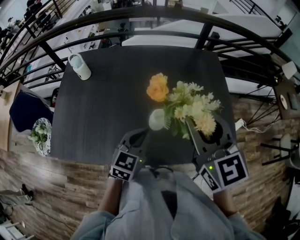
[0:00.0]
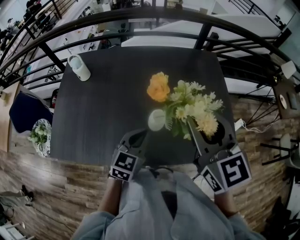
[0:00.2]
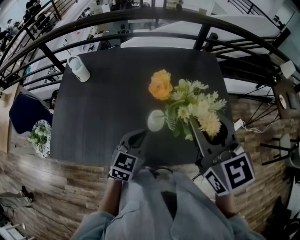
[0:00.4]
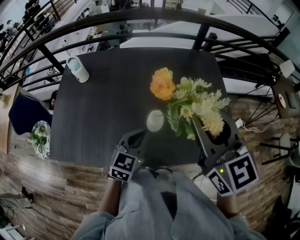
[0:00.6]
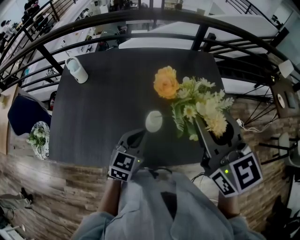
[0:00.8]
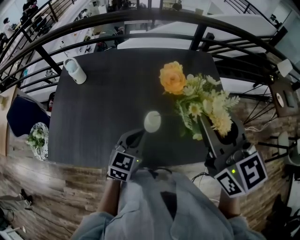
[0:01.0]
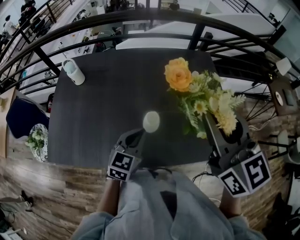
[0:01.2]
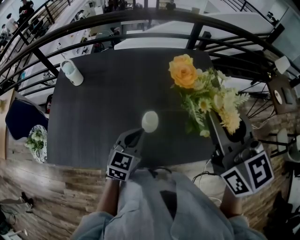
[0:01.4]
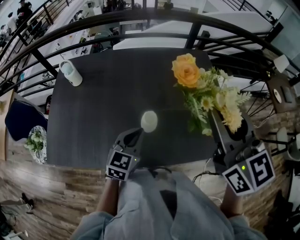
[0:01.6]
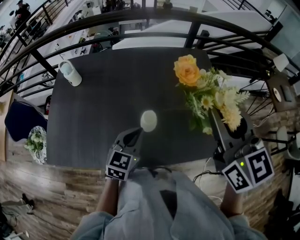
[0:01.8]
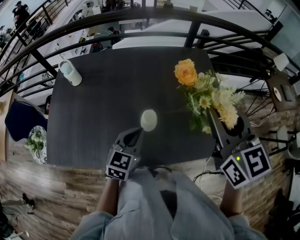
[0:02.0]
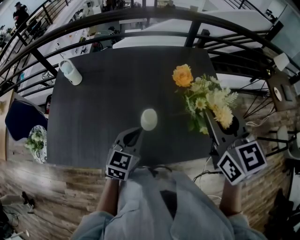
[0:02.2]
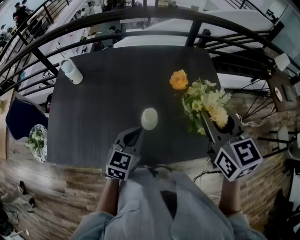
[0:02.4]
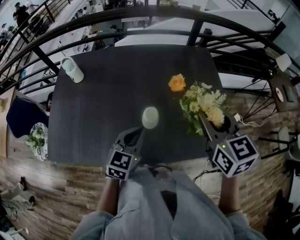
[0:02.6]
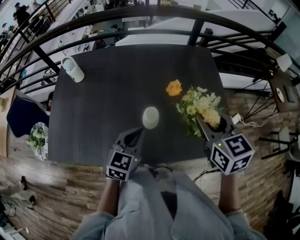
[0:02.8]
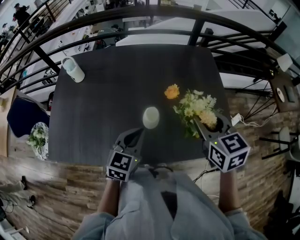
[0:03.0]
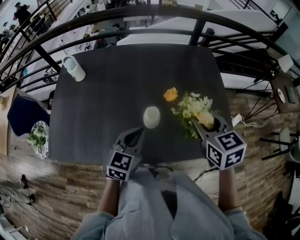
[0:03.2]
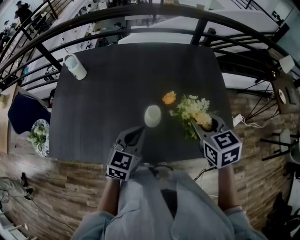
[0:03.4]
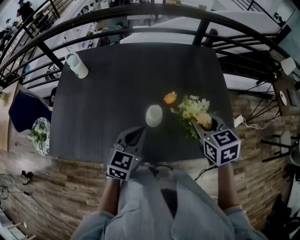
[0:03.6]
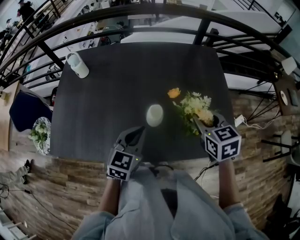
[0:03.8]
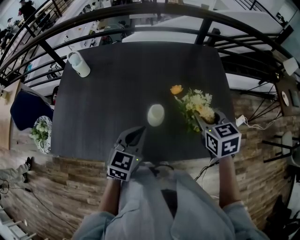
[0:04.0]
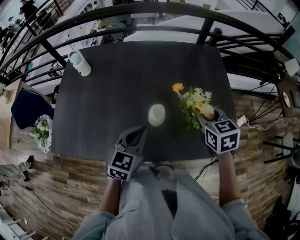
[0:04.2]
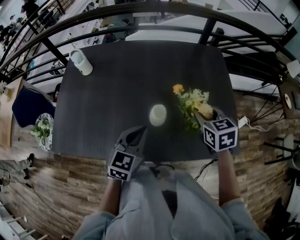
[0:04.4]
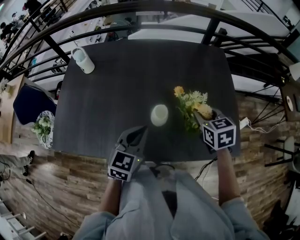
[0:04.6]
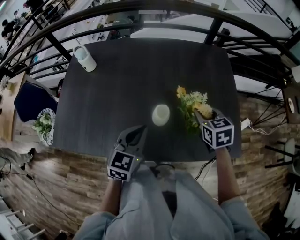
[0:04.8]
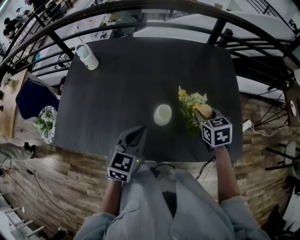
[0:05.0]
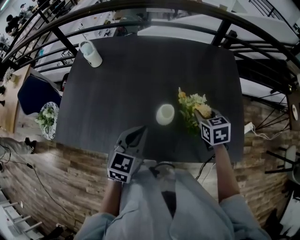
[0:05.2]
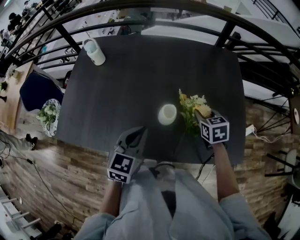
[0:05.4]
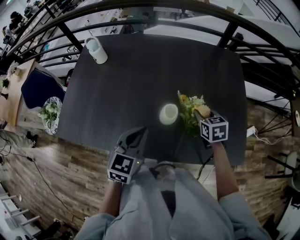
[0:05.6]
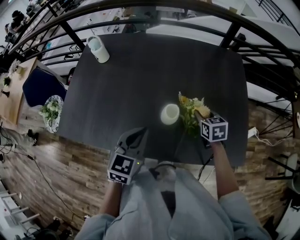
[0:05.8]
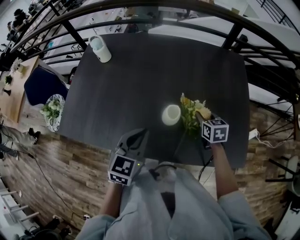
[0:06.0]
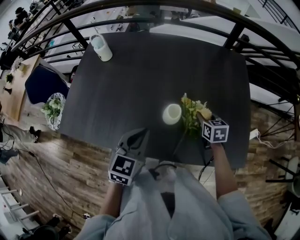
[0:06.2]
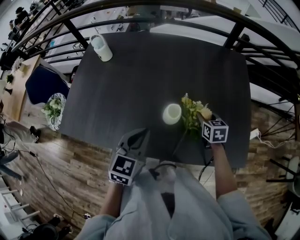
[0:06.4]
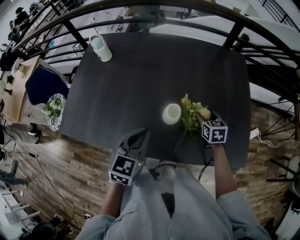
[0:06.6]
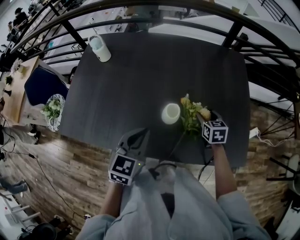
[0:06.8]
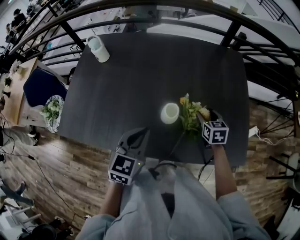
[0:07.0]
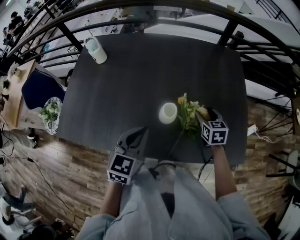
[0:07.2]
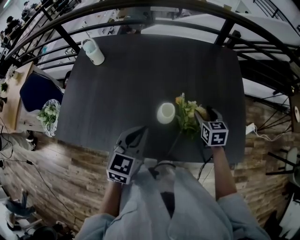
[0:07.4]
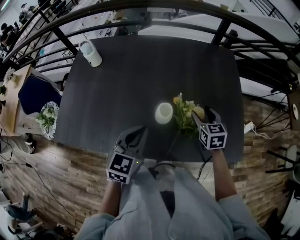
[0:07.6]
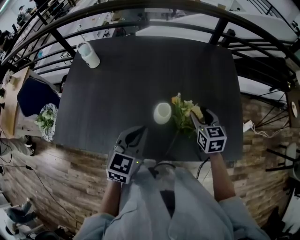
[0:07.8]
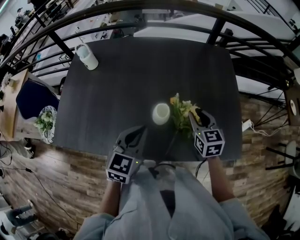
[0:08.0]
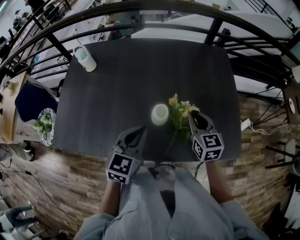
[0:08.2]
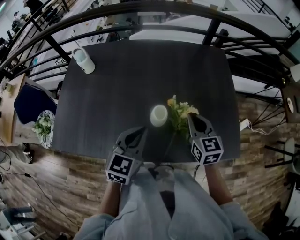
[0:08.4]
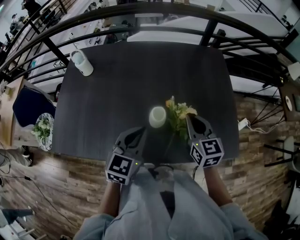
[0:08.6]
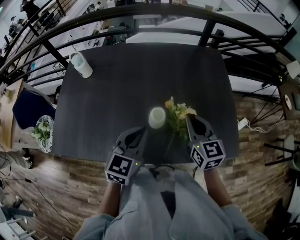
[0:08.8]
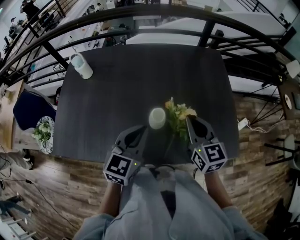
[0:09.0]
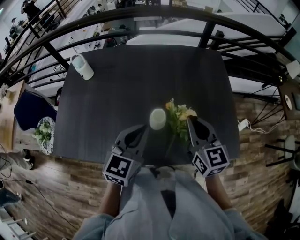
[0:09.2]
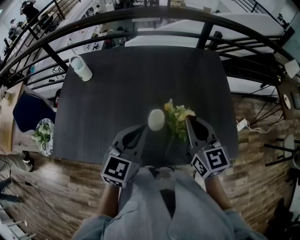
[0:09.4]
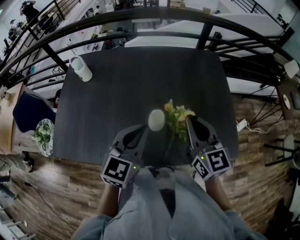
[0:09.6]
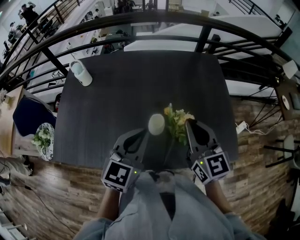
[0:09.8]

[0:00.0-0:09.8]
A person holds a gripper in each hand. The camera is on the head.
0:00.0 to 0:01.4: The right gripper goes about 5 cm upward.
0:01.4 to 0:02.8: The right gripper shifts about 15 cm downward, and turns by roughly 20 degrees.
0:02.8 to 0:04.2: The right gripper heads downward, covering about 10 cm.
0:04.2 to 0:05.6: The right gripper is displaced downward by approximately 10 cm.
0:05.6 to 0:07.0: The right gripper opens.
0:07.0 to 0:08.4: The right gripper is displaced upward and backward by about 15 cm, and closes up.
0:08.4 to 0:09.8: The right gripper travels upward by approximately 10 cm; the left gripper goes approximately 5 cm upward.

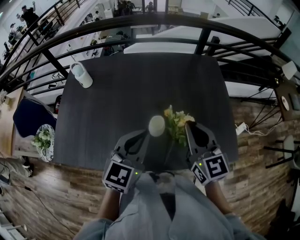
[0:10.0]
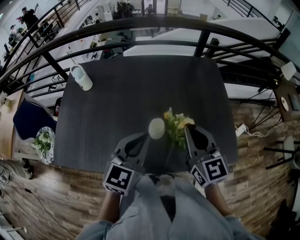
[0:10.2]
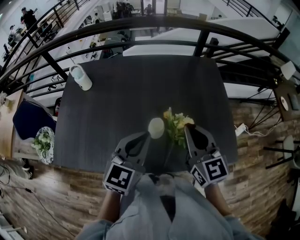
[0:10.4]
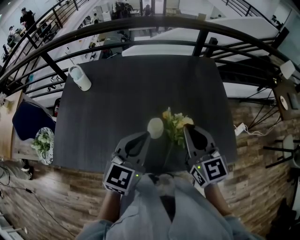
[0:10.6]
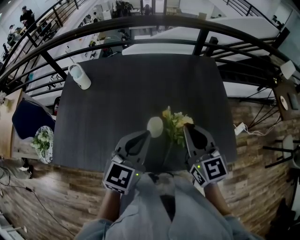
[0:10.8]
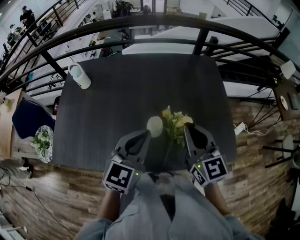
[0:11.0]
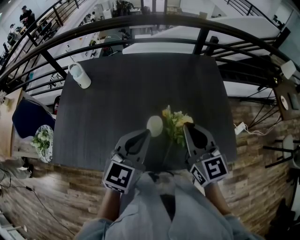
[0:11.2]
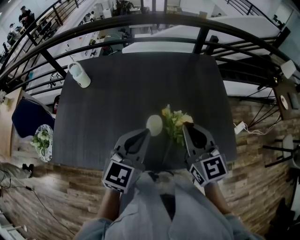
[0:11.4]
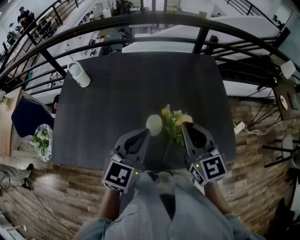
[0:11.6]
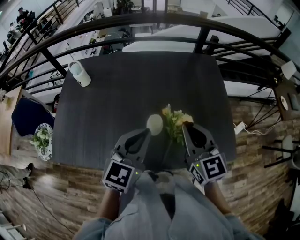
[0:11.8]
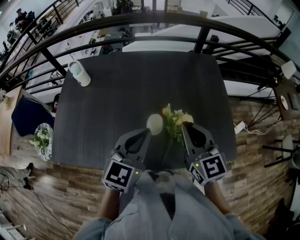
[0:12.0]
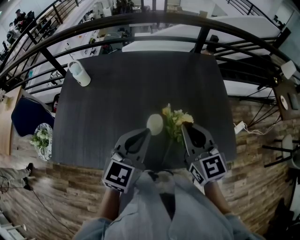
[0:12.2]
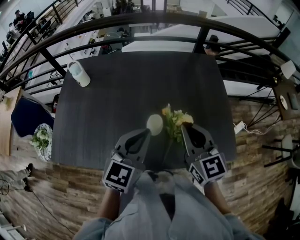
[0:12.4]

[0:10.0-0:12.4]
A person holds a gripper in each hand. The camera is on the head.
0:10.0 to 0:12.4: The two grippers keep their place.

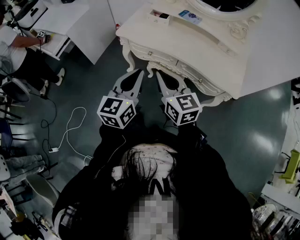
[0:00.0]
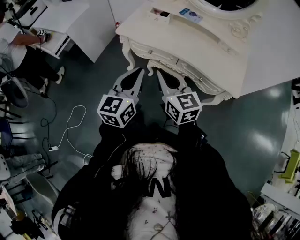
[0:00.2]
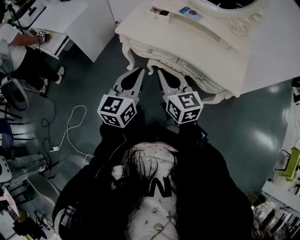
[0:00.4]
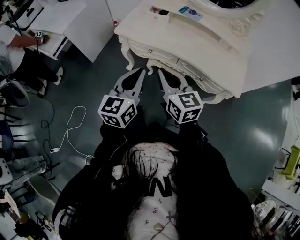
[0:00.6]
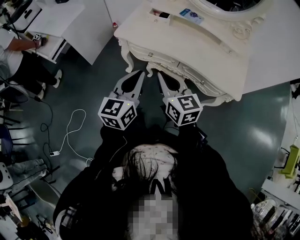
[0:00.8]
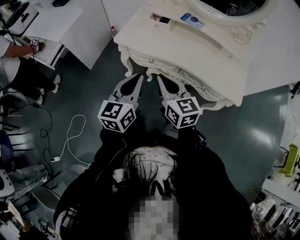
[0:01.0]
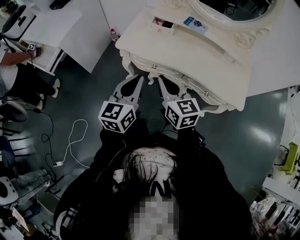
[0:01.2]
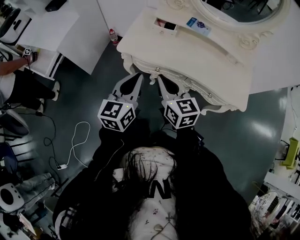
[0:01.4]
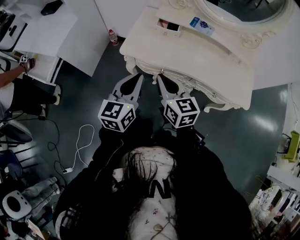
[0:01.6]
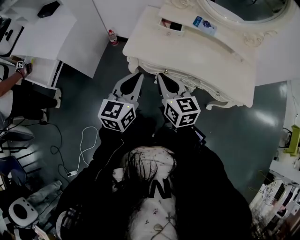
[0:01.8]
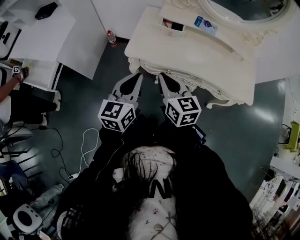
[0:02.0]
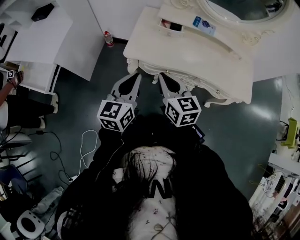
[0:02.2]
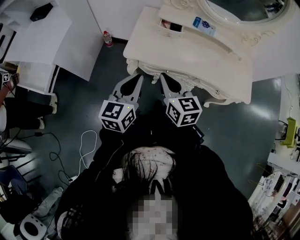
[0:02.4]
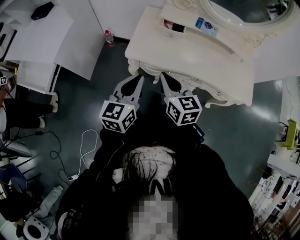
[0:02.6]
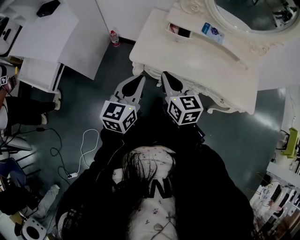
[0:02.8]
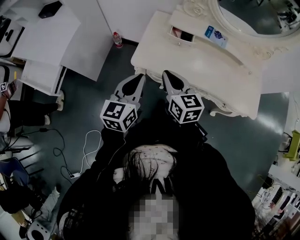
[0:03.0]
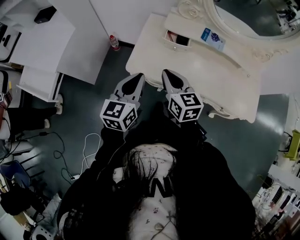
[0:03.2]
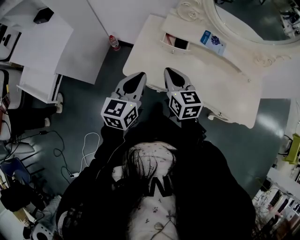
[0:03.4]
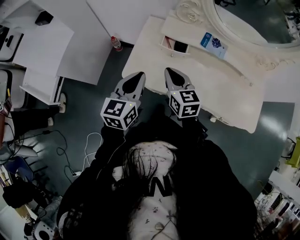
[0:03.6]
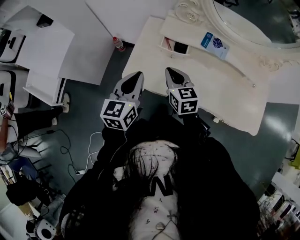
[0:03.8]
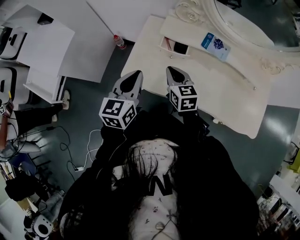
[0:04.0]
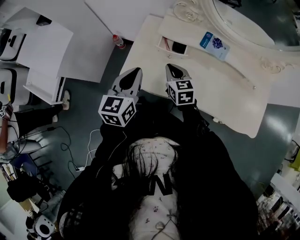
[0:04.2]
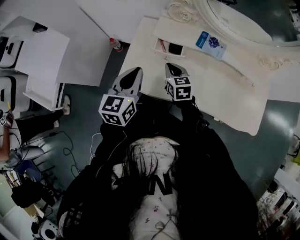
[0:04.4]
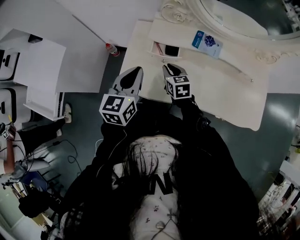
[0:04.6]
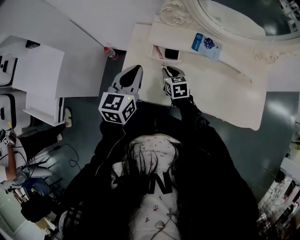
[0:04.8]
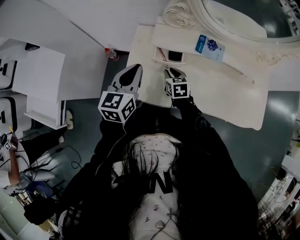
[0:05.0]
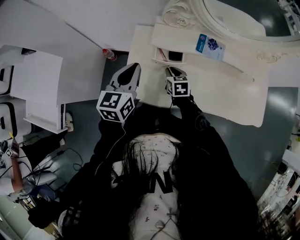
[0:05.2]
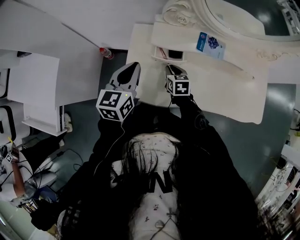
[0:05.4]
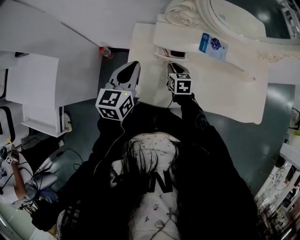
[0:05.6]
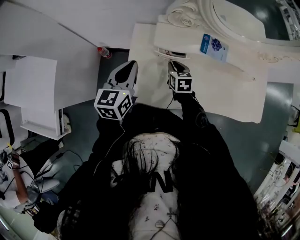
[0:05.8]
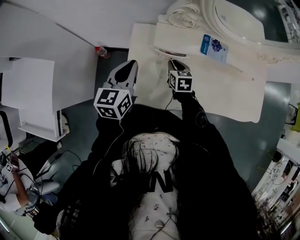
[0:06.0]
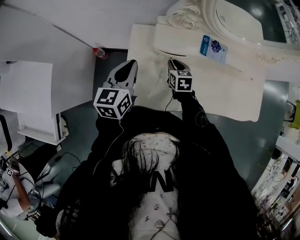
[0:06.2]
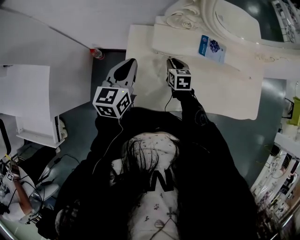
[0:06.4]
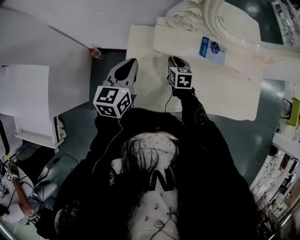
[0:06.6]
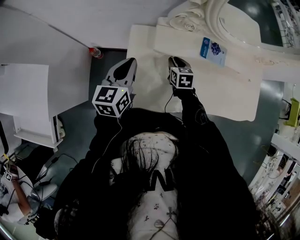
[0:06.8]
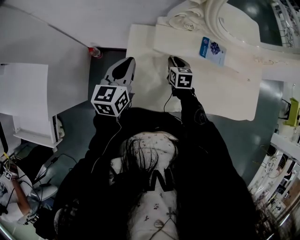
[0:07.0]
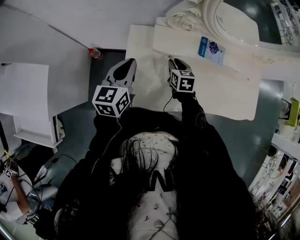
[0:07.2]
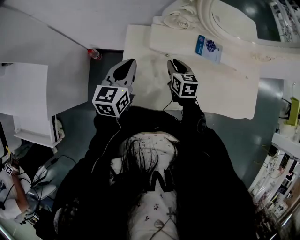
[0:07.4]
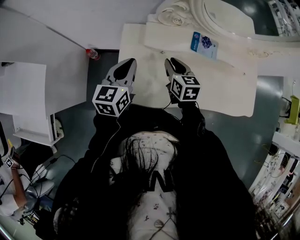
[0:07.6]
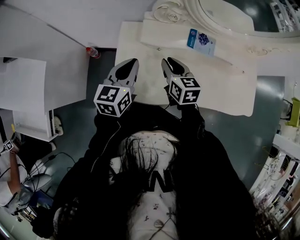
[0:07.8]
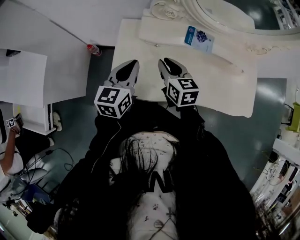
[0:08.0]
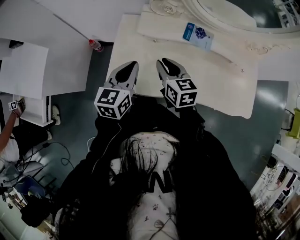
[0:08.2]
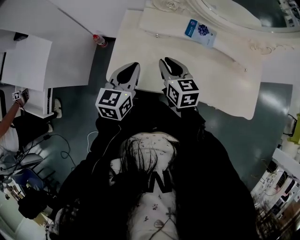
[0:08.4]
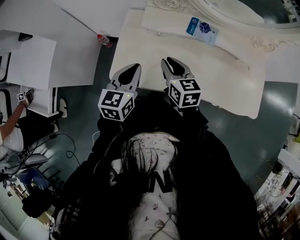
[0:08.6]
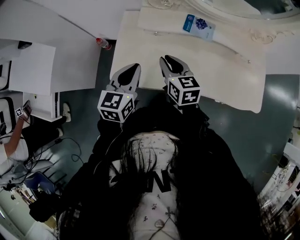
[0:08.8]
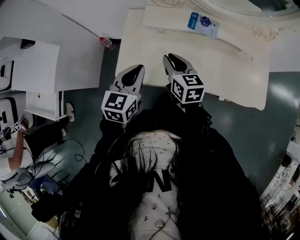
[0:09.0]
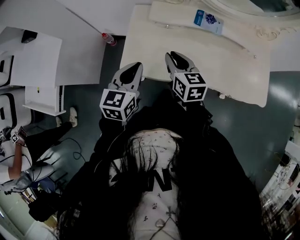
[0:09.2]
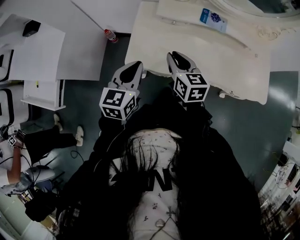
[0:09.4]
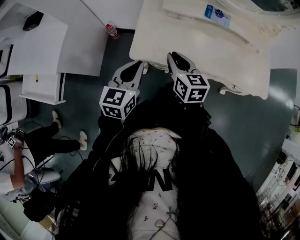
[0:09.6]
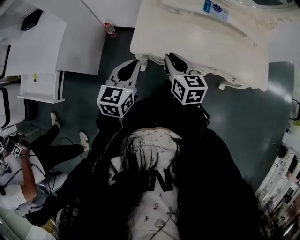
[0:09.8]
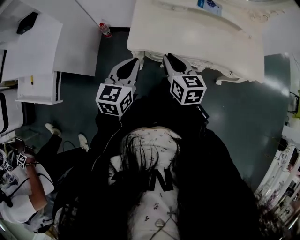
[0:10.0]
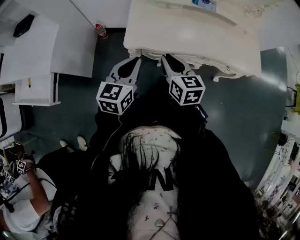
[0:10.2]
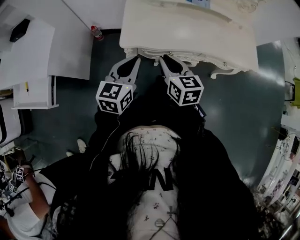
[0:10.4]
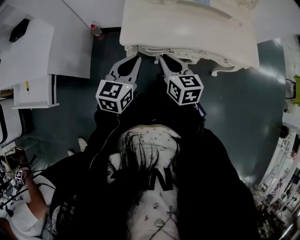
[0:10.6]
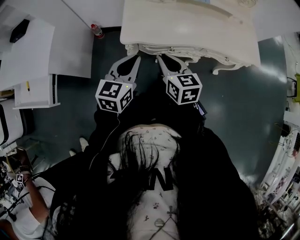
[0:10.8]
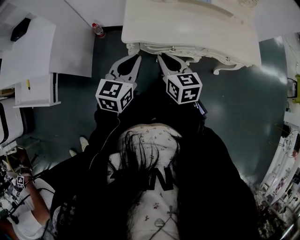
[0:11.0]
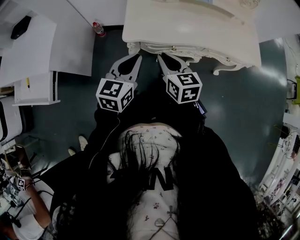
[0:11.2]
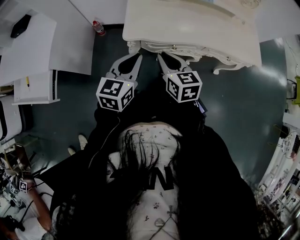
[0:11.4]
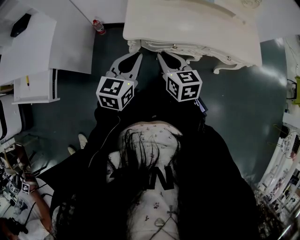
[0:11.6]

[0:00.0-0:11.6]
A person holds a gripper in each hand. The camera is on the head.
0:00.0 to 0:01.4: Both grippers travel together forward and to the left, roughly 20 cm.
0:01.4 to 0:02.8: The grippers both shift to the left and forward by some 15 cm.
0:02.8 to 0:04.4: The left gripper moves forward and to the right, roughly 20 cm. The right gripper travels forward, downward and to the right by about 30 cm.
0:04.4 to 0:05.8: The left gripper shifts about 15 cm forward and to the left. The right gripper goes about 10 cm forward and downward, and turns by some 20 degrees.
0:05.8 to 0:07.2: There are only small adjustments of the grippers.
0:07.2 to 0:08.8: The right gripper travels backward and upward by roughly 20 cm, and turns by approximately 20 degrees. Meanwhile the left gripper moves backward and to the right, approximately 20 cm.
0:08.8 to 0:10.2: The two grippers go roughly 20 cm backward and to the left.
0:10.2 to 0:11.6: The grippers move only a little.
